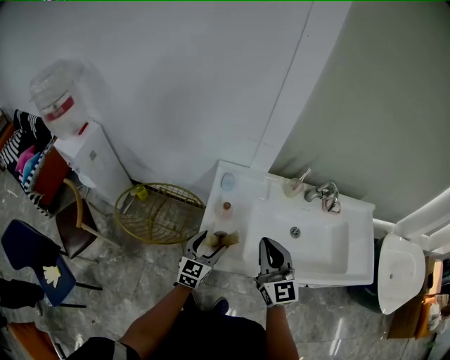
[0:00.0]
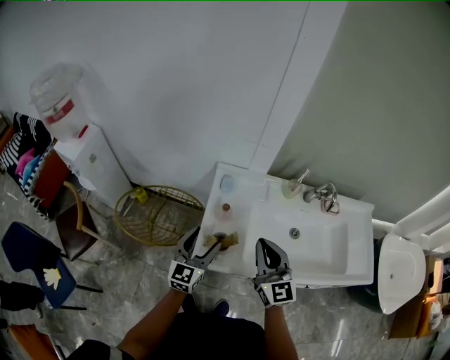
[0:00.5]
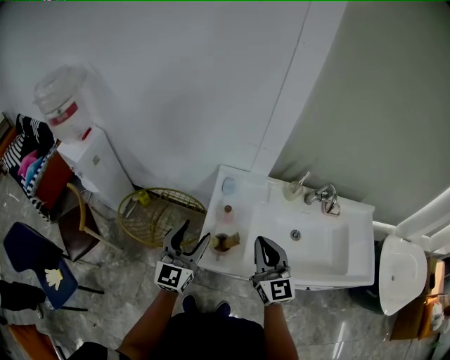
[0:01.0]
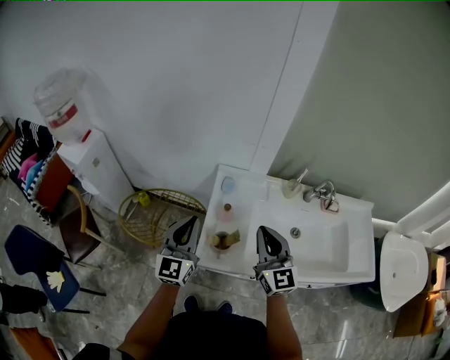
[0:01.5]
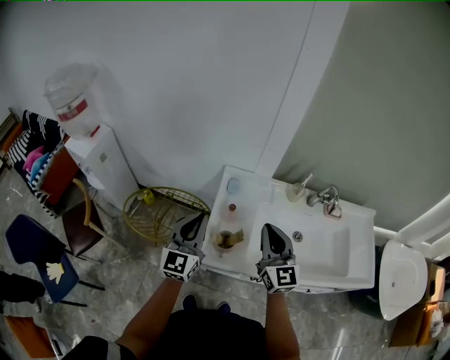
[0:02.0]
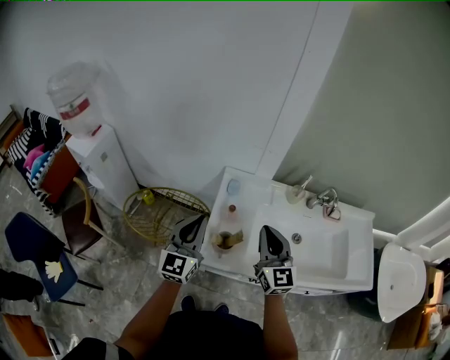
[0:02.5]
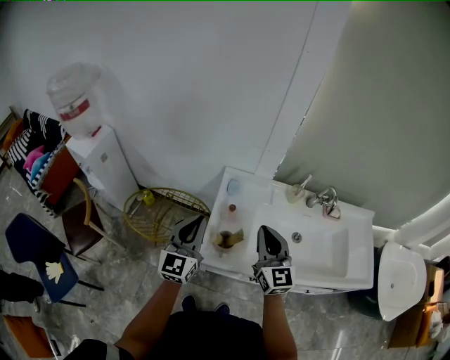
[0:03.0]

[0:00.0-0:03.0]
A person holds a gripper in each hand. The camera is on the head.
0:00.0 to 0:01.5: The left gripper heads upward and to the left, covering about 20 cm, changes its angle by roughly 20 degrees, and closes.
0:01.5 to 0:03.0: The grippers make only small movements.

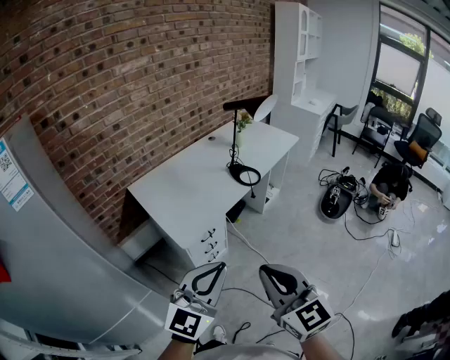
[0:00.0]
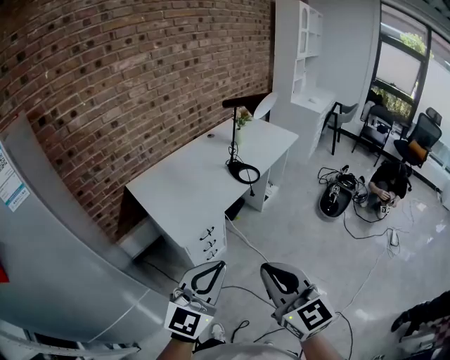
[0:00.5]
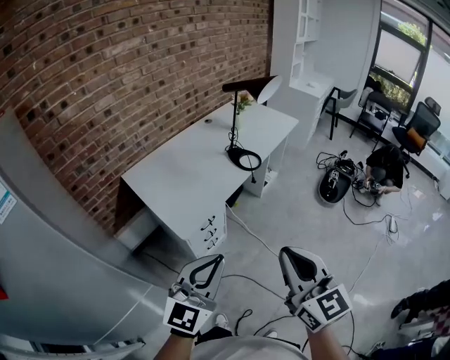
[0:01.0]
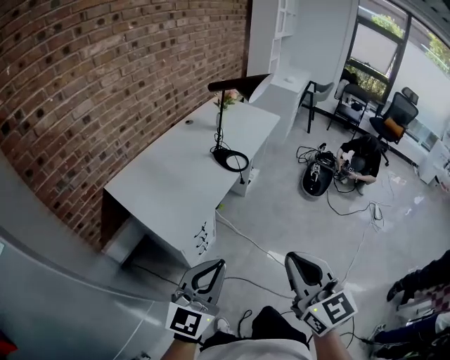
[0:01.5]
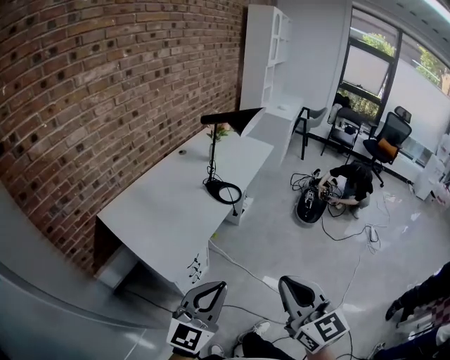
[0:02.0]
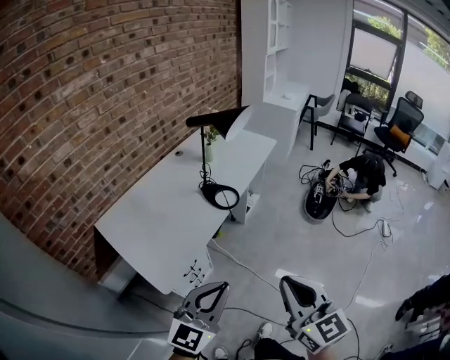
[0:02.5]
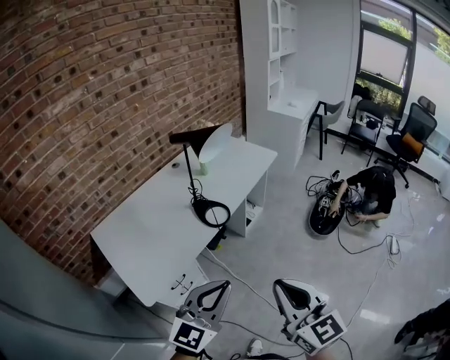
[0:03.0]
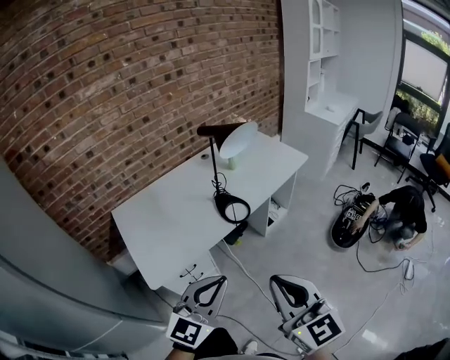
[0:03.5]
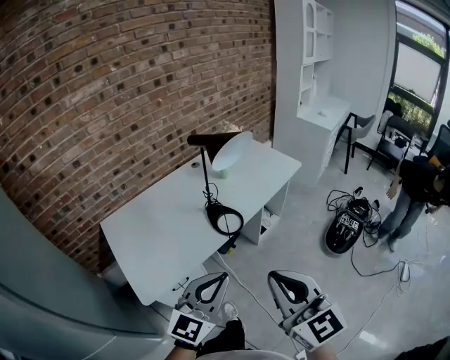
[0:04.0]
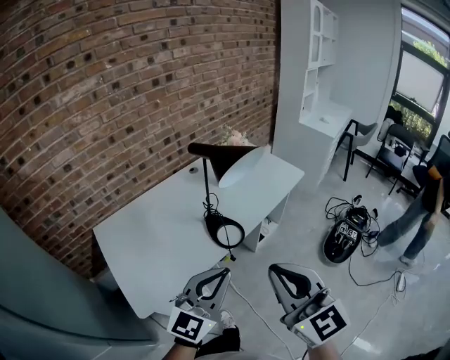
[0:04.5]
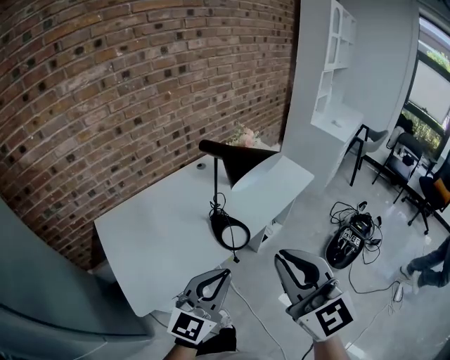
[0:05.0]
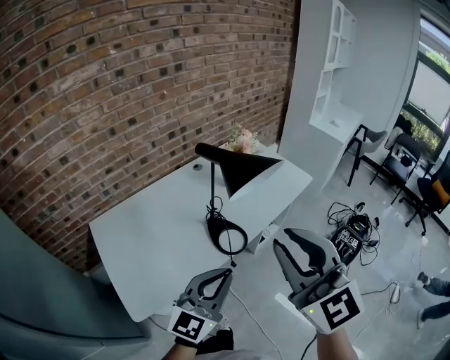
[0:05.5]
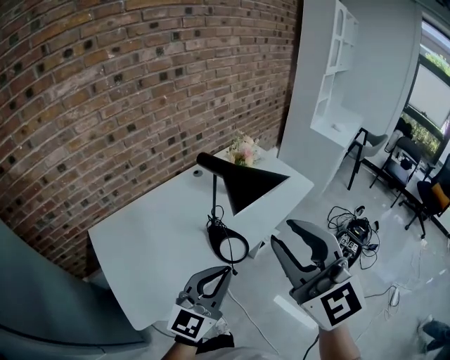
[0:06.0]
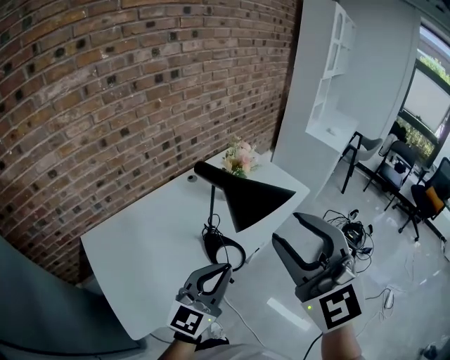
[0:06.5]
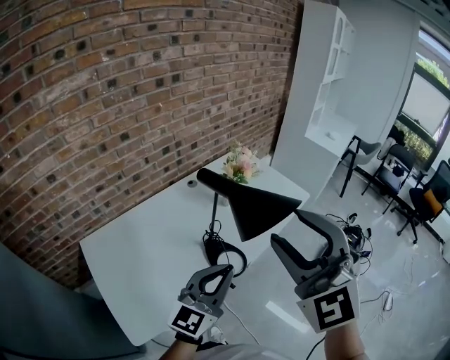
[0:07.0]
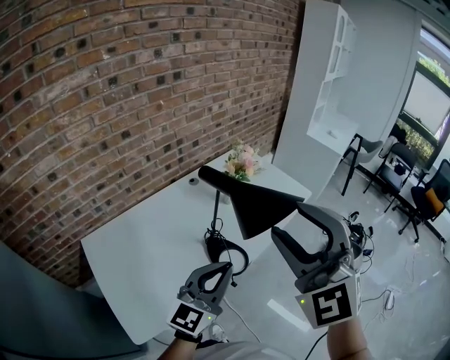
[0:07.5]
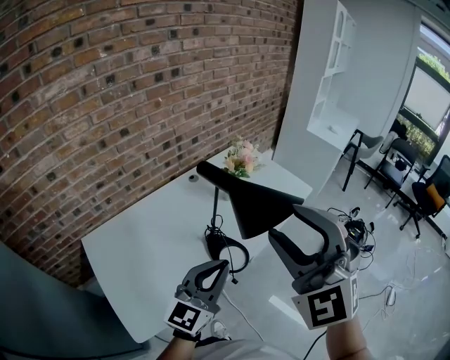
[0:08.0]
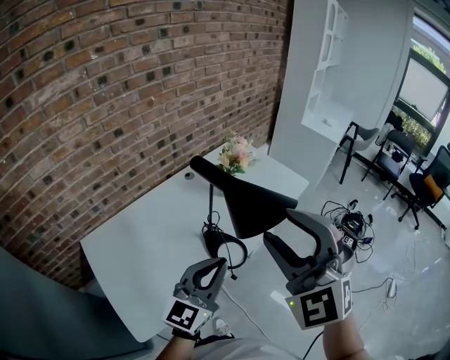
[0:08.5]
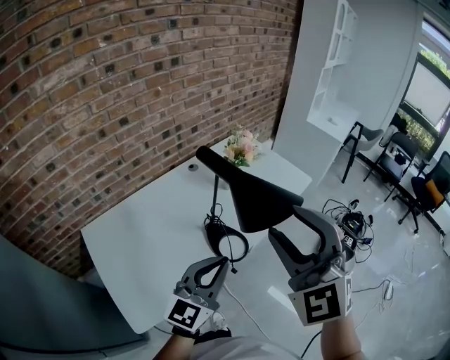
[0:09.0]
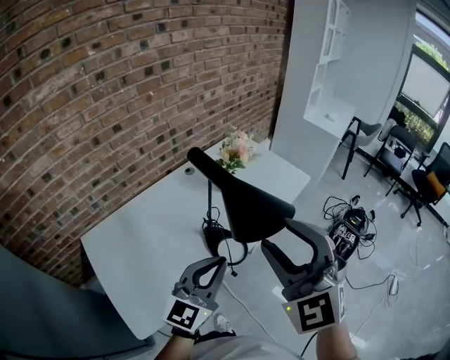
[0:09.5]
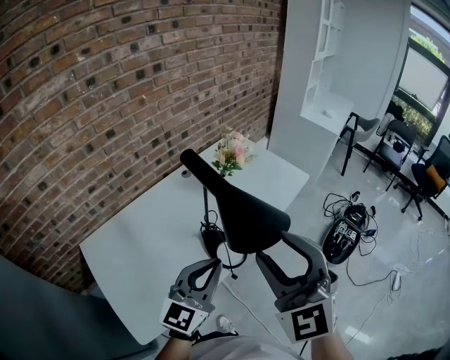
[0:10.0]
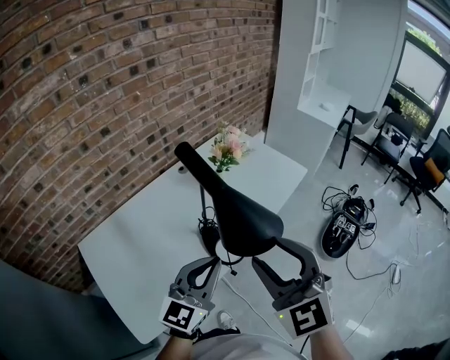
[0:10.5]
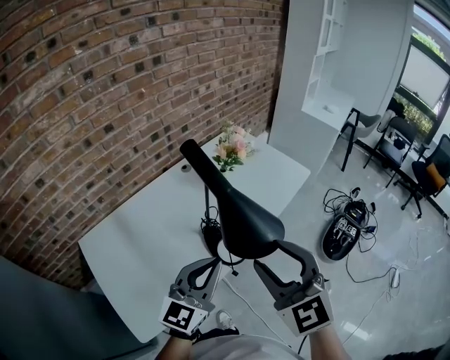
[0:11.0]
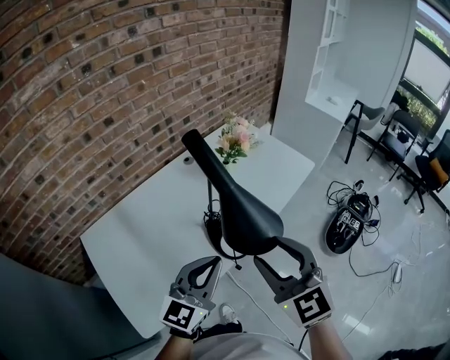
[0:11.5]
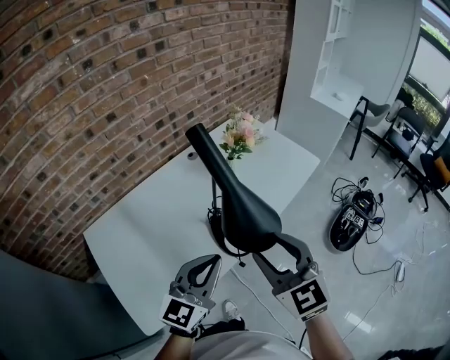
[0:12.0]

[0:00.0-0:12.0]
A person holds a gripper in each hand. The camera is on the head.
0:00.0 to 0:02.0: The grippers both shift forward by about 10 cm.
0:02.0 to 0:04.0: The two grippers go approximately 30 cm forward and to the right. The right gripper swivels some 20 degrees.
0:04.0 to 0:06.0: The left gripper moves forward, some 15 cm; the right gripper travels forward and upward by roughly 25 cm, and opens up.
0:06.0 to 0:08.0: Both grippers move forward, about 5 cm. The right gripper changes its angle by approximately 40 degrees, and opens its fingers.
0:08.0 to 0:10.0: The right gripper shifts approximately 5 cm downward.
0:10.0 to 0:12.0: The right gripper goes about 10 cm downward, and swivels some 30 degrees.

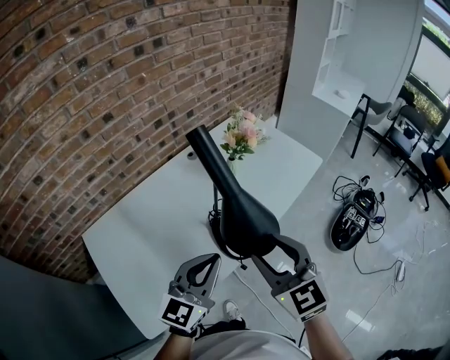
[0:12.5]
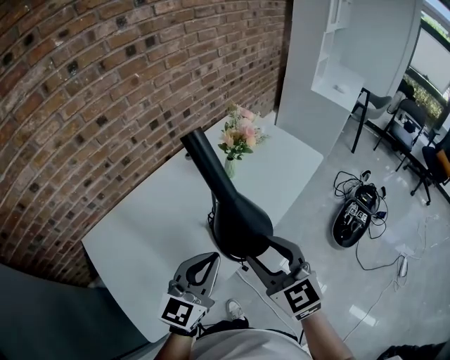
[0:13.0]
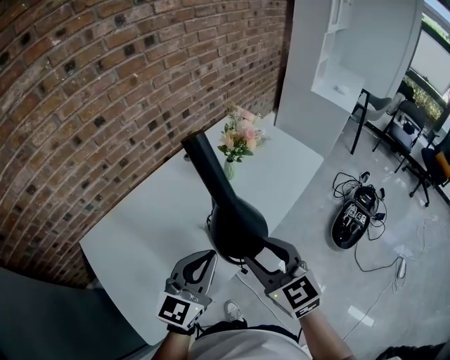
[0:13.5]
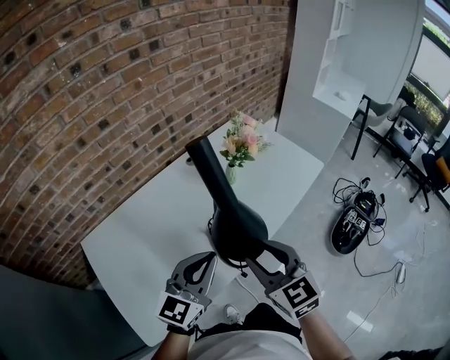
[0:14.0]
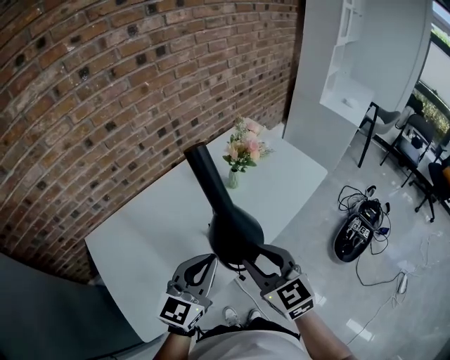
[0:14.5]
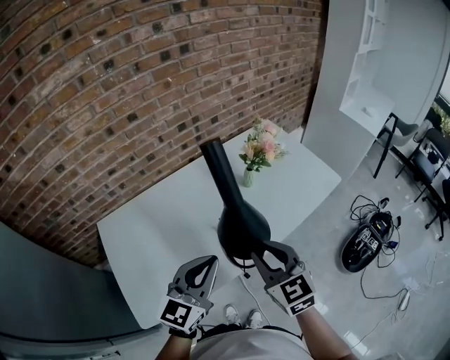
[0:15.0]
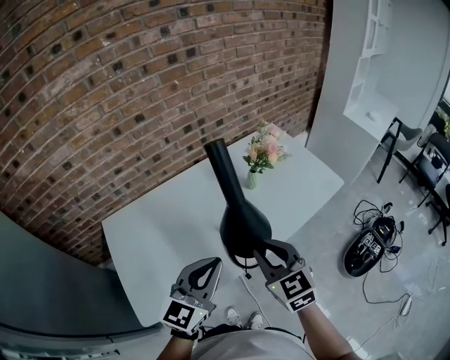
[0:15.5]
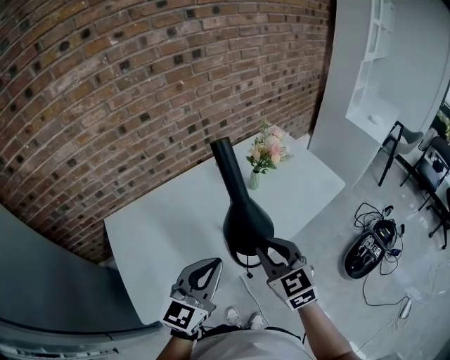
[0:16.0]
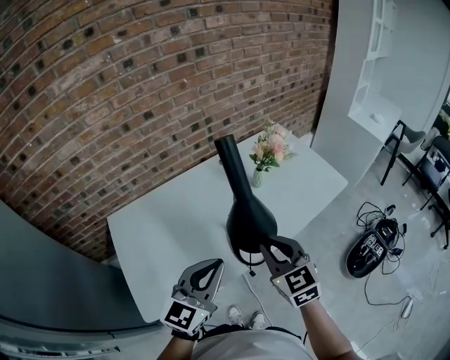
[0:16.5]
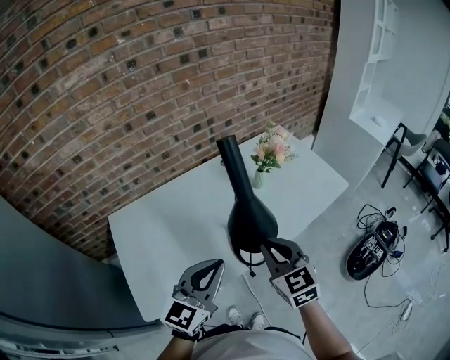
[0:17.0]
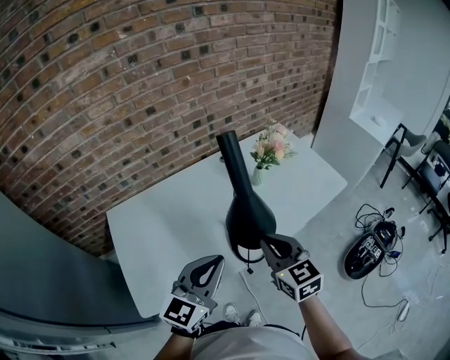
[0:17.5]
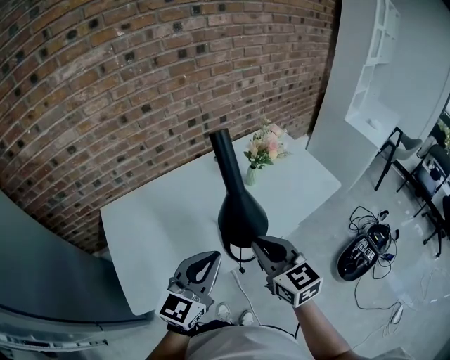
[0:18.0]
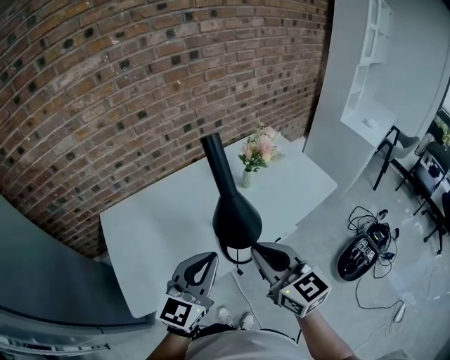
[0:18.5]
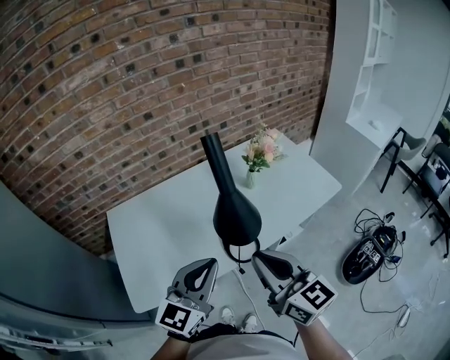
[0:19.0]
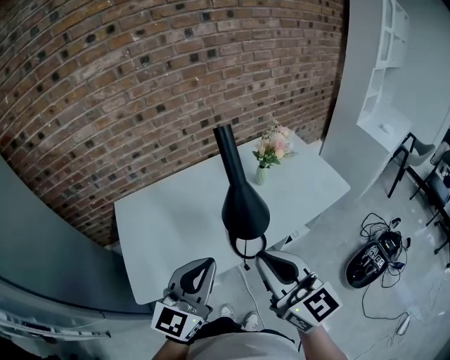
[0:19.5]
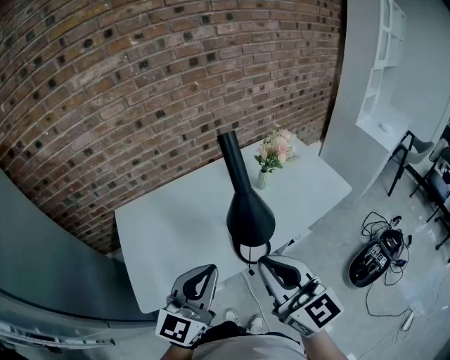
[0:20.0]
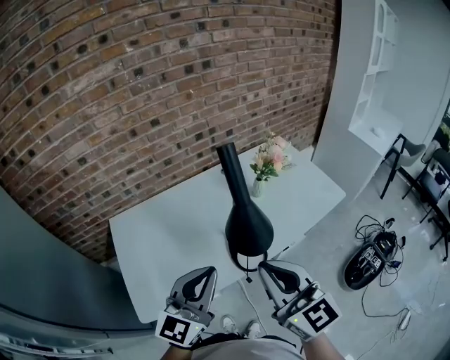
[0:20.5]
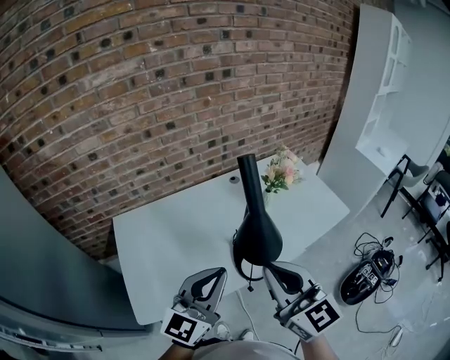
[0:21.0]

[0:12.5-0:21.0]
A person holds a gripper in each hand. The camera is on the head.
0:12.5 to 0:14.5: The right gripper ends up roughly 5 cm from where it was.
0:14.5 to 0:16.5: The left gripper moves backward, about 5 cm; the right gripper closes.
0:16.5 to 0:19.0: The left gripper ends up about 5 cm from where it was, while the right gripper heads backward and upward, covering about 10 cm, and rotates roughly 30 degrees.
0:19.0 to 0:21.0: The left gripper moves approximately 5 cm, while the right gripper shifts approximately 5 cm to the left.

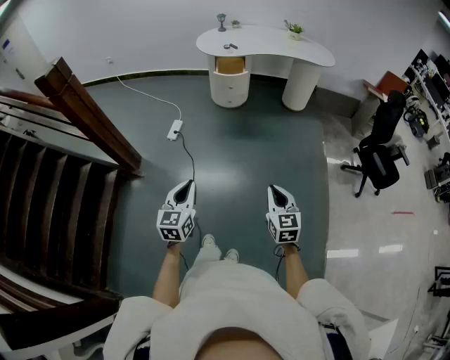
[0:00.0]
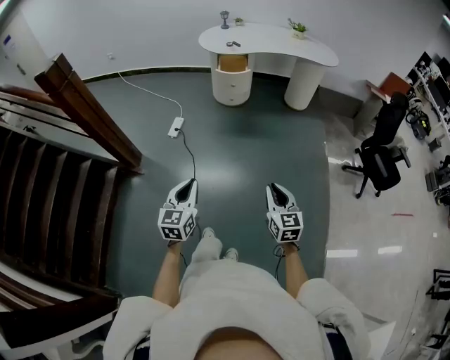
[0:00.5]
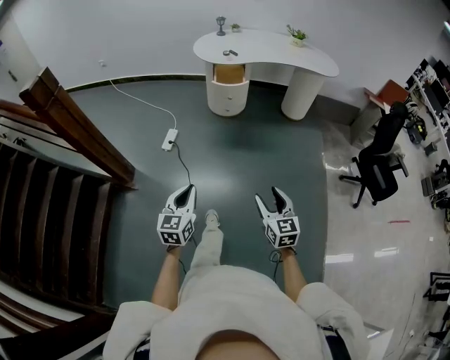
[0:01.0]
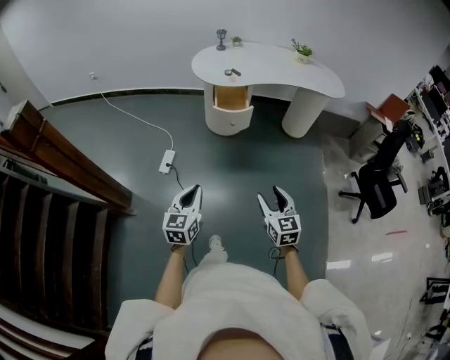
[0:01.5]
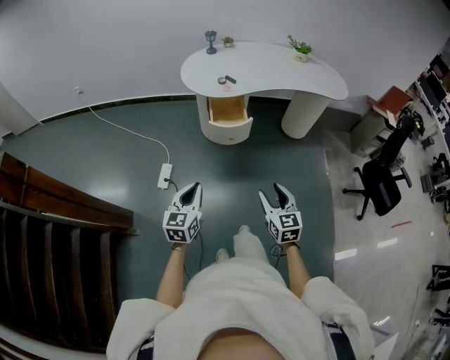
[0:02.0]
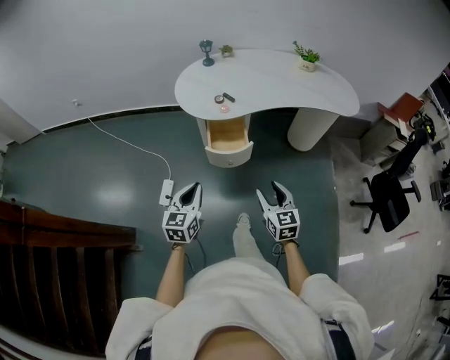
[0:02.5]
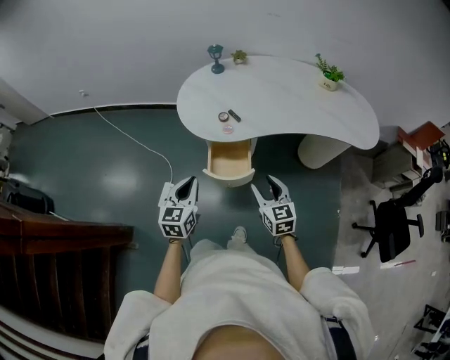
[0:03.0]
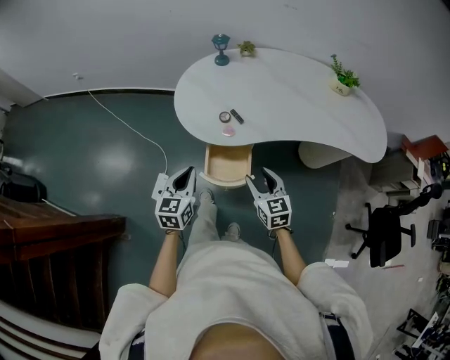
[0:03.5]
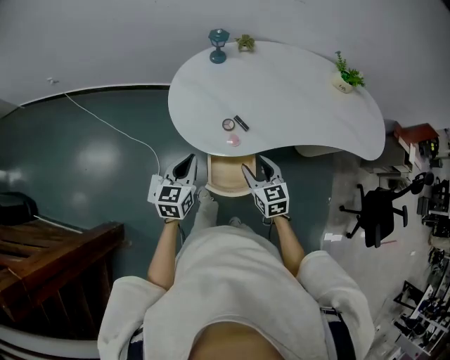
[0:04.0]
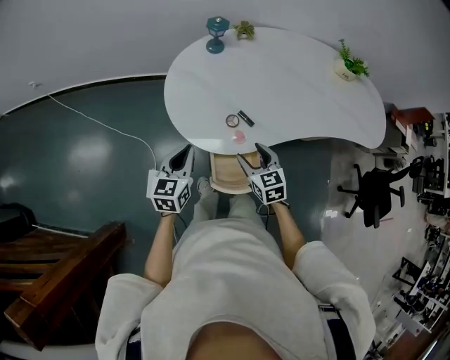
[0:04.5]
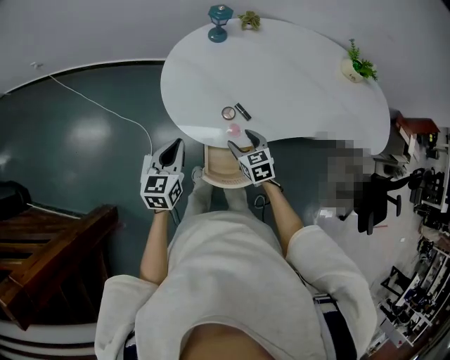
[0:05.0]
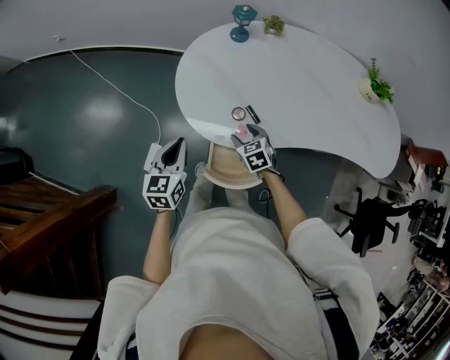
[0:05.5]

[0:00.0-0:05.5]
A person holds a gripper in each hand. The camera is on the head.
0:00.0 to 0:02.0: The pair of grippers is taken forward, approximately 50 cm. The right gripper opens up.
0:02.0 to 0:03.5: The two grippers travel together, forward, some 50 cm.
0:03.5 to 0:05.5: The left gripper travels forward and to the left by approximately 15 cm; the right gripper travels forward, downward and to the left by about 30 cm, and turns by about 30 degrees.
